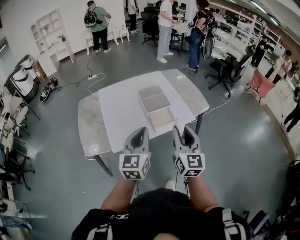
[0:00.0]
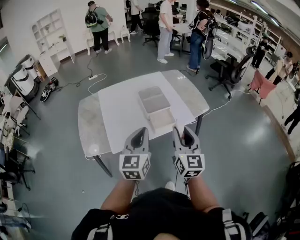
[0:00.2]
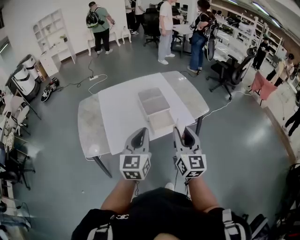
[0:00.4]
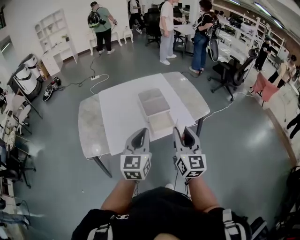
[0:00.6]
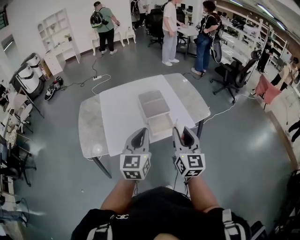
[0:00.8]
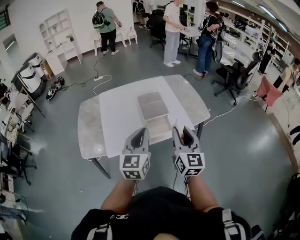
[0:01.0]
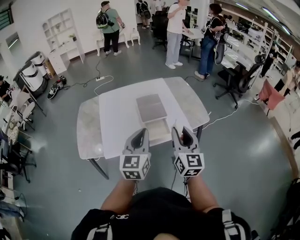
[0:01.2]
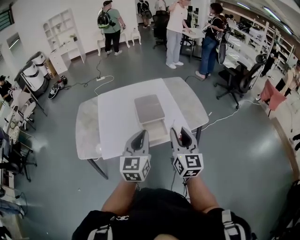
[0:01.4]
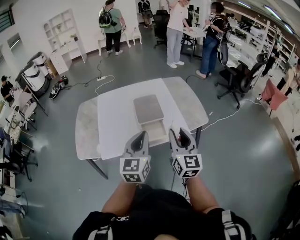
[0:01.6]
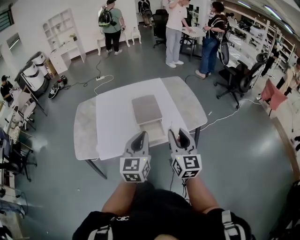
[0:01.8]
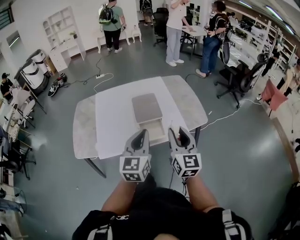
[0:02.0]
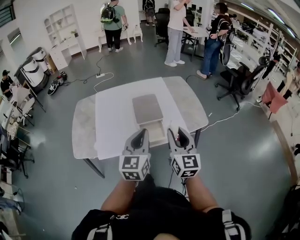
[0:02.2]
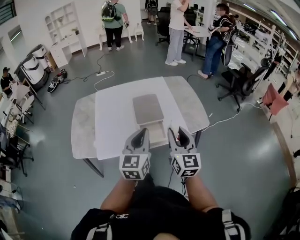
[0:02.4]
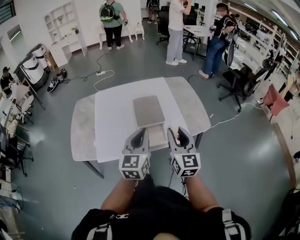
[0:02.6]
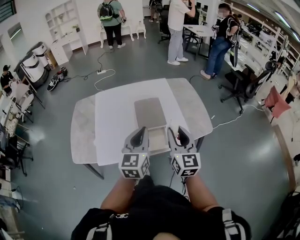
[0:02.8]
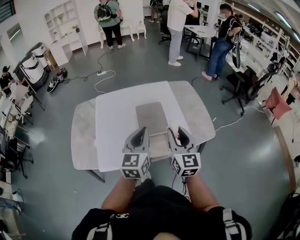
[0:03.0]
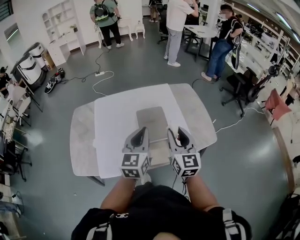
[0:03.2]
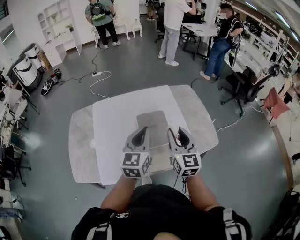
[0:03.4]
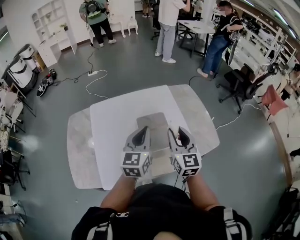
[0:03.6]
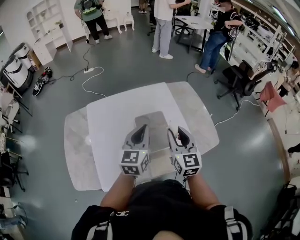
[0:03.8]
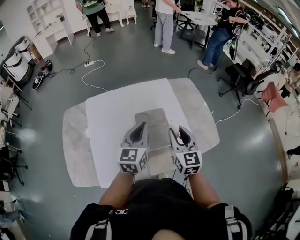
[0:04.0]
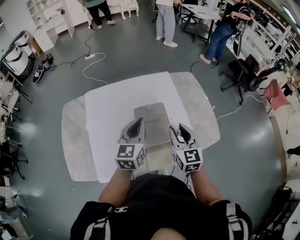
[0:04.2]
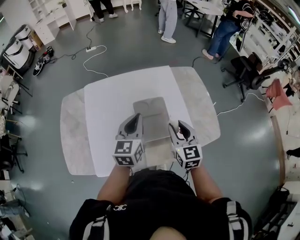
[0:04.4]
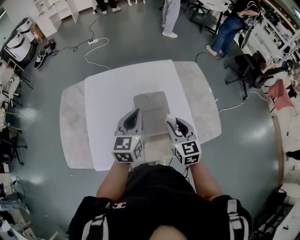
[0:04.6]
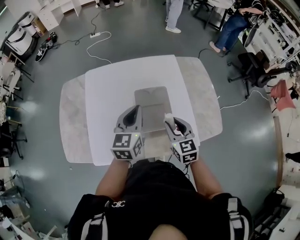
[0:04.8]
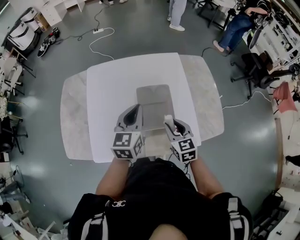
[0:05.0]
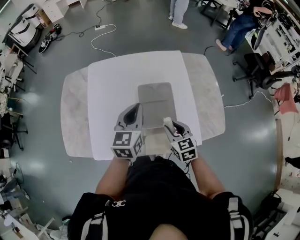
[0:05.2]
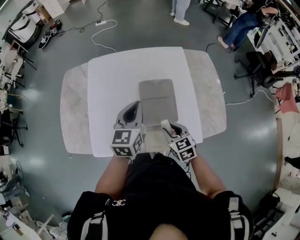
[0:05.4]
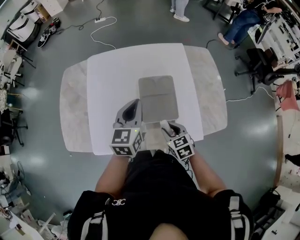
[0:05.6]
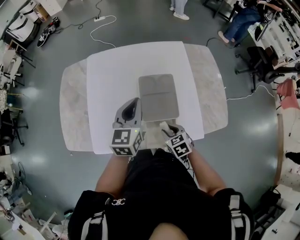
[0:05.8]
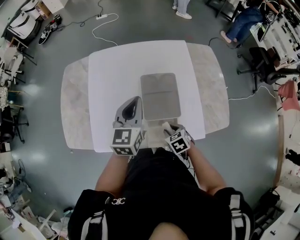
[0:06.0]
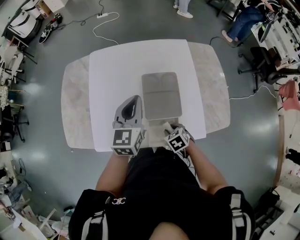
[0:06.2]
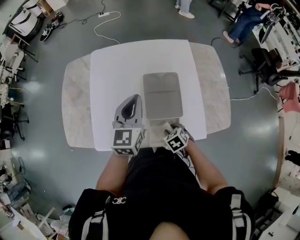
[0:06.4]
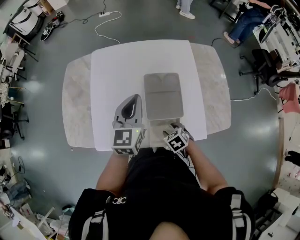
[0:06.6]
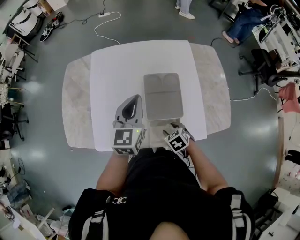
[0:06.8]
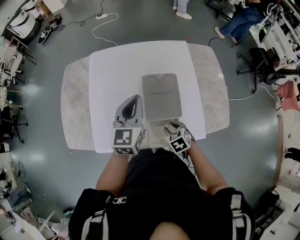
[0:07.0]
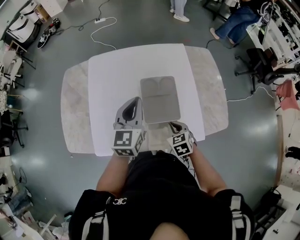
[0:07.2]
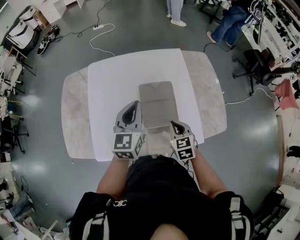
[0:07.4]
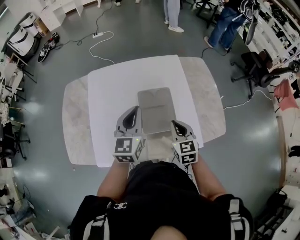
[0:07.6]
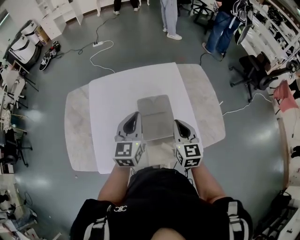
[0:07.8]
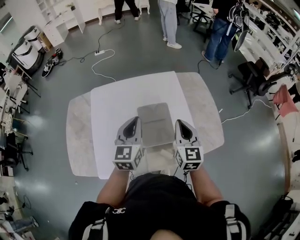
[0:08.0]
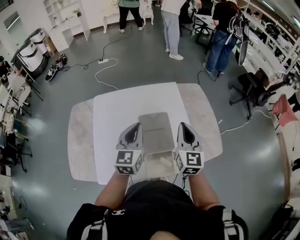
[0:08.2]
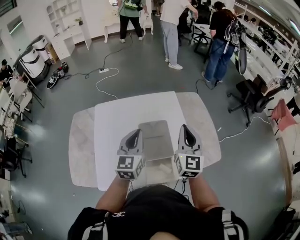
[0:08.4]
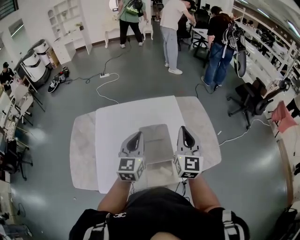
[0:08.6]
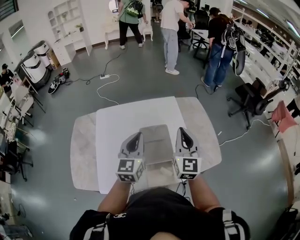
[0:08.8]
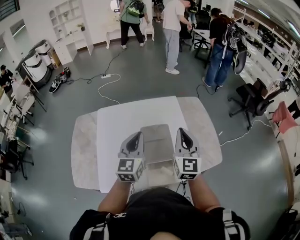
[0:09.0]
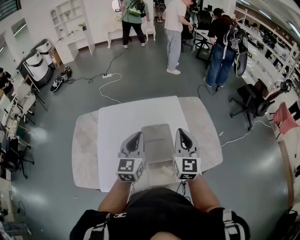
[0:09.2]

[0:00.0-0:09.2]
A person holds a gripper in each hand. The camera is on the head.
0.0 to 1.6 s: Both grippers move to the right and forward, roughly 15 cm.
1.6 to 3.0 s: The two grippers go approximately 15 cm forward.
3.0 to 4.6 s: The right gripper travels forward and downward by roughly 20 cm, and rotates about 20 degrees. The left gripper moves forward, approximately 20 cm.
4.6 to 6.2 s: The right gripper moves downward, approximately 20 cm, and points its fingers approximately 40 degrees further downward.
6.2 to 7.6 s: The right gripper heads upward and forward, covering roughly 20 cm, tips its fingers upward by about 40 degrees, and closes.
7.6 to 9.2 s: The left gripper is displaced upward by some 5 cm. The right gripper heads upward, covering some 15 cm, and points its fingers about 30 degrees further upward.

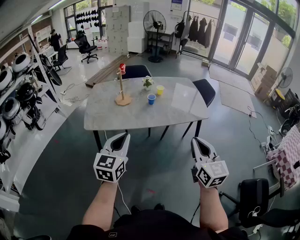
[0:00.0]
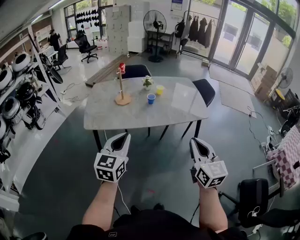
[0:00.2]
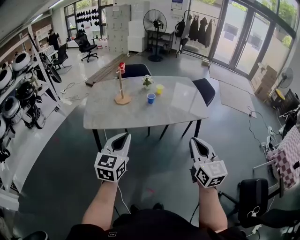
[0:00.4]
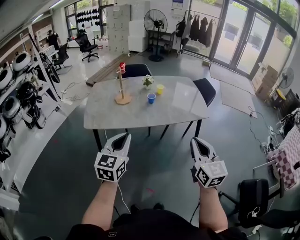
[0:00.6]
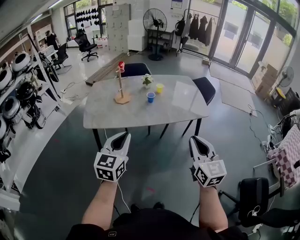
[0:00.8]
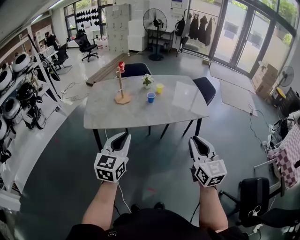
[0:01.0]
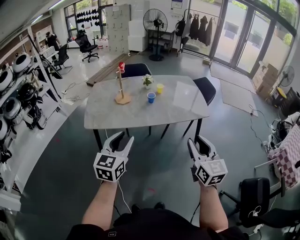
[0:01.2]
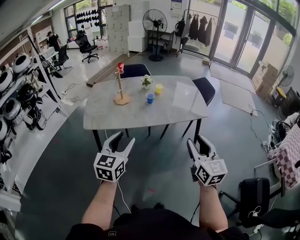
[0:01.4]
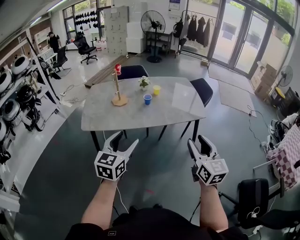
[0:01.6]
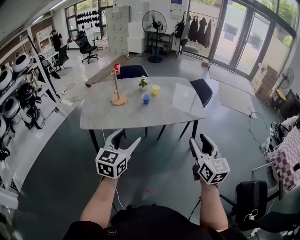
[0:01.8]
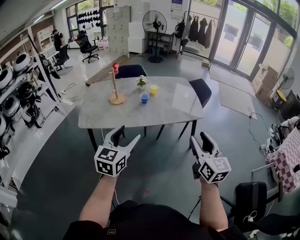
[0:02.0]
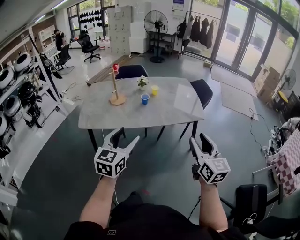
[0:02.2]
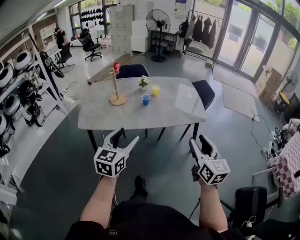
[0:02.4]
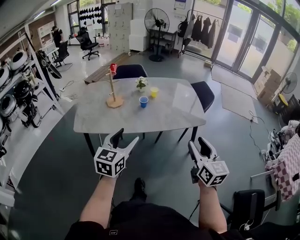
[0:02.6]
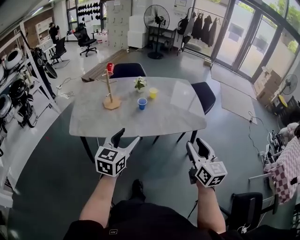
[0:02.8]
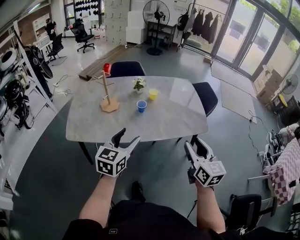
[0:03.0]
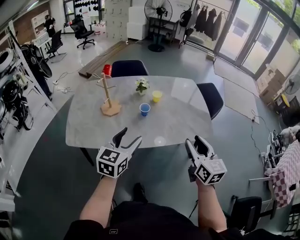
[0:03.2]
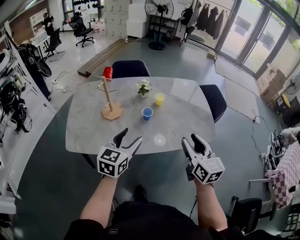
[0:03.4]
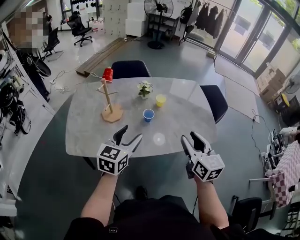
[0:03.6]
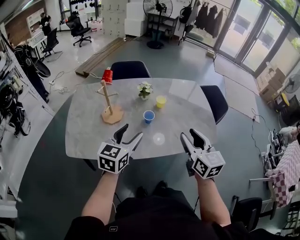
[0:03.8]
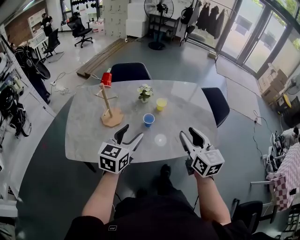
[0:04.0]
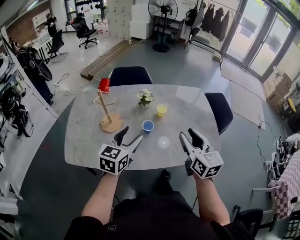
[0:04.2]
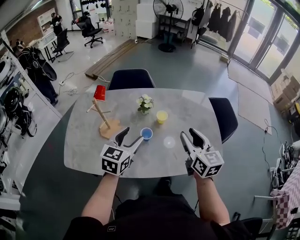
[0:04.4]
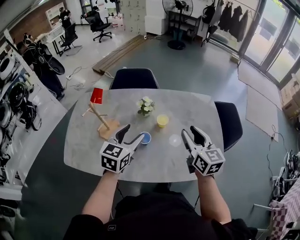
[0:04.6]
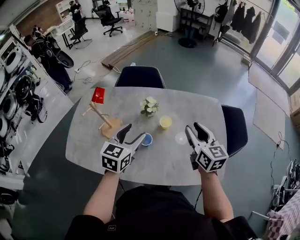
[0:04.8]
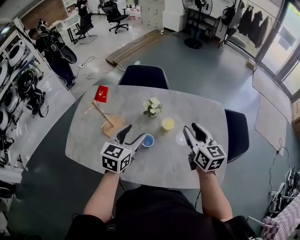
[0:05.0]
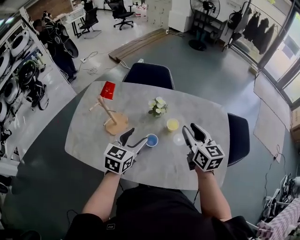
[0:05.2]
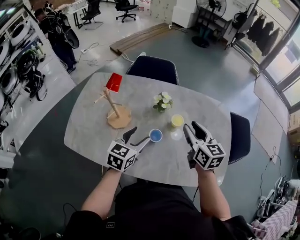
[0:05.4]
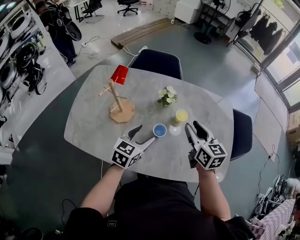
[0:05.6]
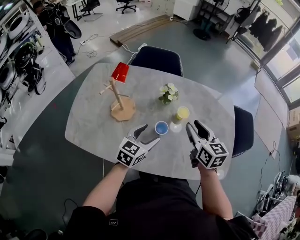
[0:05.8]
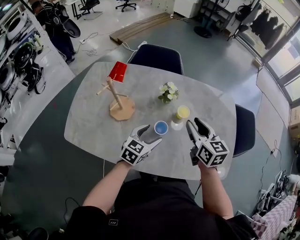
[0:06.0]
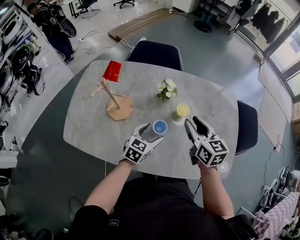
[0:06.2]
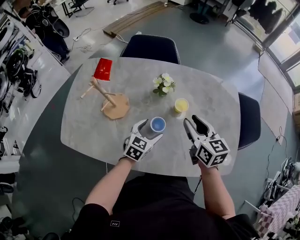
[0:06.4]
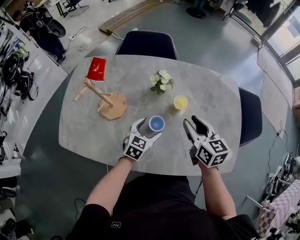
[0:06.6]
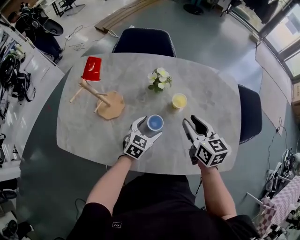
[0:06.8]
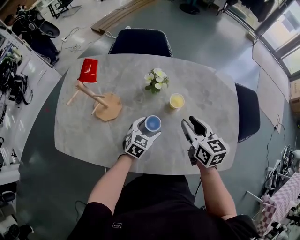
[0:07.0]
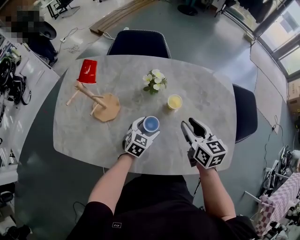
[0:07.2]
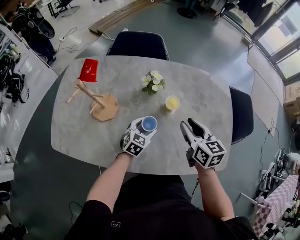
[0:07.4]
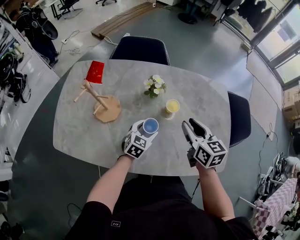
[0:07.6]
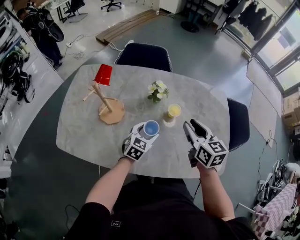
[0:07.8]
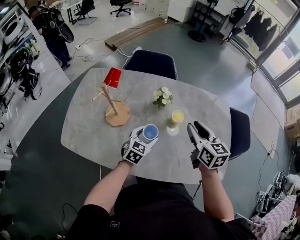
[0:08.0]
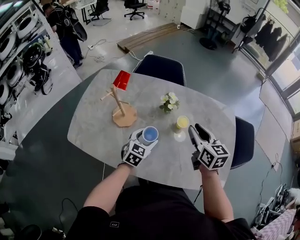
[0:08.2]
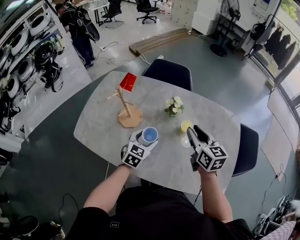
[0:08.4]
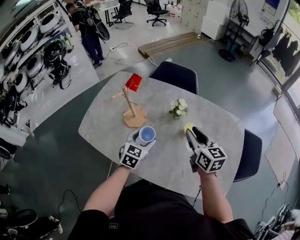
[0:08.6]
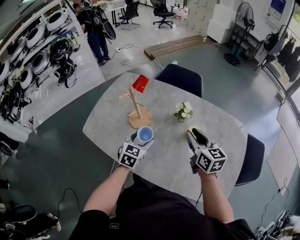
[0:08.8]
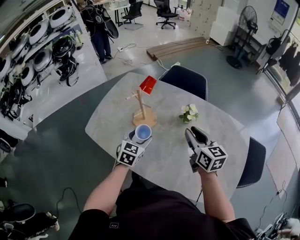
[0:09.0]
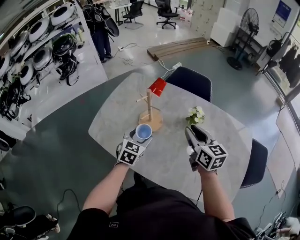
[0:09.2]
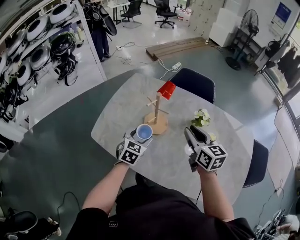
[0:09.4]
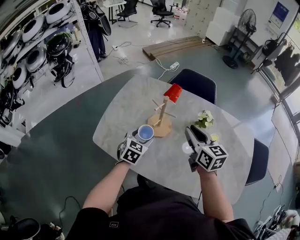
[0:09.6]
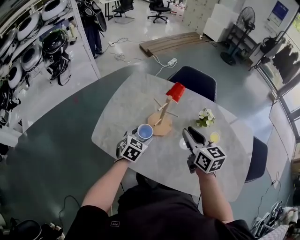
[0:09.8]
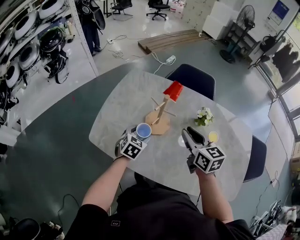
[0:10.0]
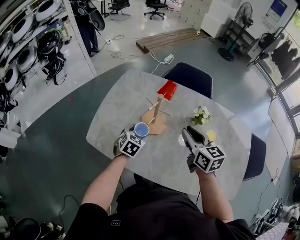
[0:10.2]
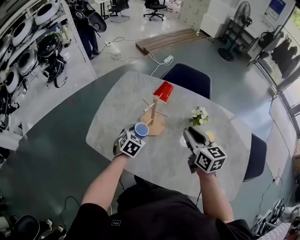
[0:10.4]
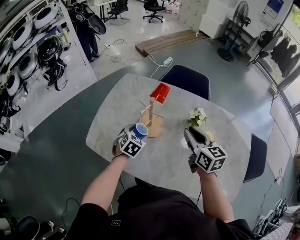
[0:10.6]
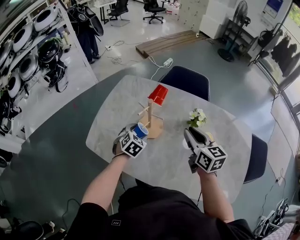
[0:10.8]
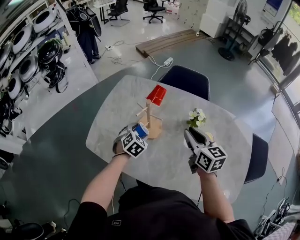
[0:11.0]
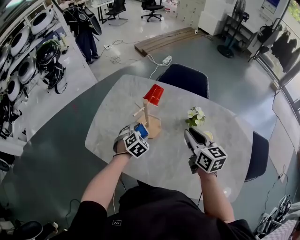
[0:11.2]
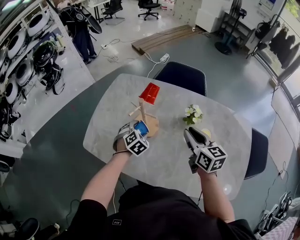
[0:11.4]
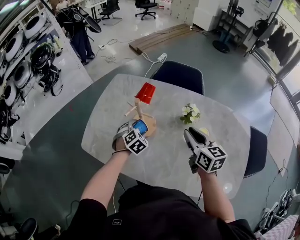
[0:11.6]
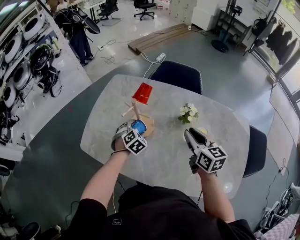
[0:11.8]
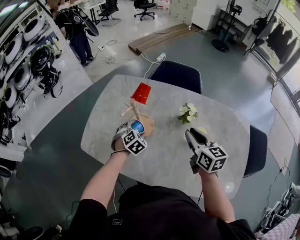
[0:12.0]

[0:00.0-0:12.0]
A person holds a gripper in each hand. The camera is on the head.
0.0 to 1.6 s: The right gripper opens; the left gripper opens.
1.6 to 3.0 s: The grippers both shift forward by approximately 20 cm.
3.0 to 4.4 s: The two grippers go roughly 30 cm forward.
4.4 to 6.0 s: The right gripper moves forward, downward and to the left, about 15 cm. The left gripper goes approximately 15 cm downward.
6.0 to 7.6 s: The left gripper shifts some 10 cm downward.
7.6 to 9.0 s: The right gripper moves roughly 15 cm, and swivels some 20 degrees; the left gripper changes place by approximately 20 cm, and changes its angle by some 30 degrees.
9.0 to 10.4 s: The left gripper heads to the left, downward and forward, covering approximately 15 cm, and rotates approximately 20 degrees, while the right gripper goes some 10 cm to the left.
10.4 to 12.0 s: The grippers both shift to the right by roughly 10 cm. The left gripper turns by approximately 20 degrees.

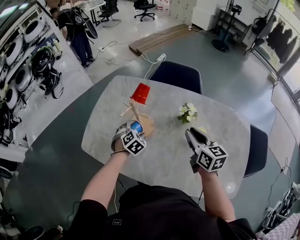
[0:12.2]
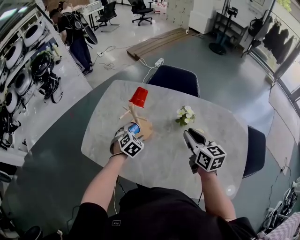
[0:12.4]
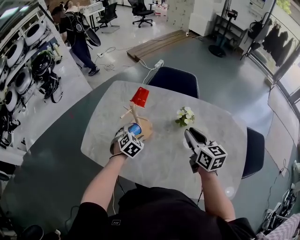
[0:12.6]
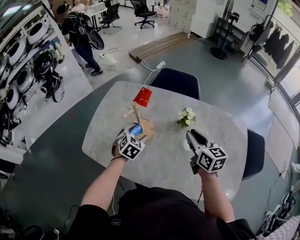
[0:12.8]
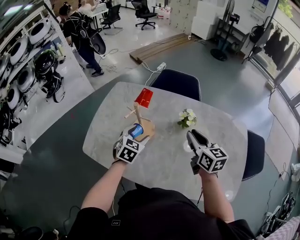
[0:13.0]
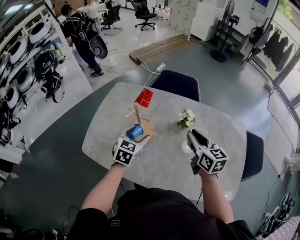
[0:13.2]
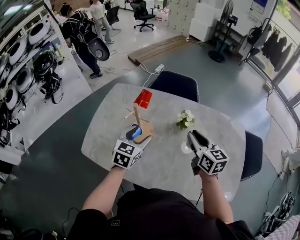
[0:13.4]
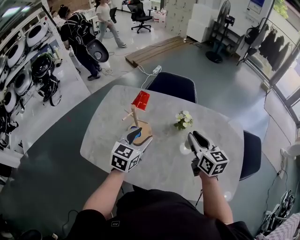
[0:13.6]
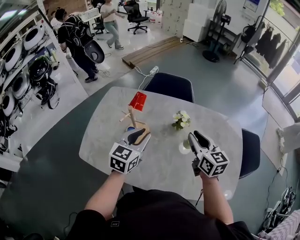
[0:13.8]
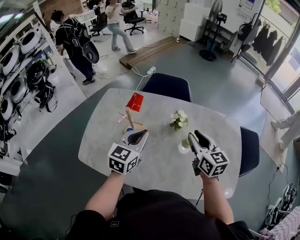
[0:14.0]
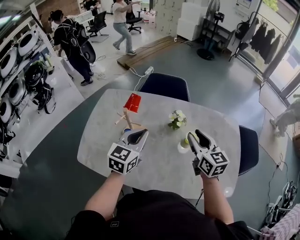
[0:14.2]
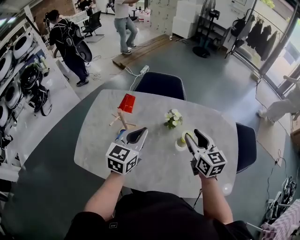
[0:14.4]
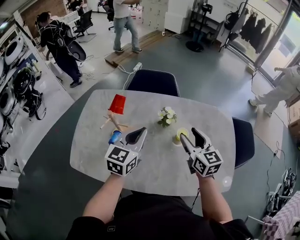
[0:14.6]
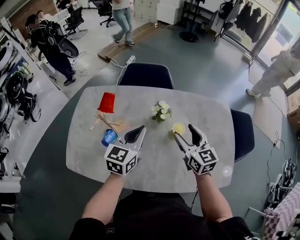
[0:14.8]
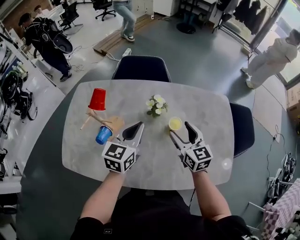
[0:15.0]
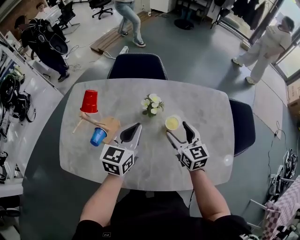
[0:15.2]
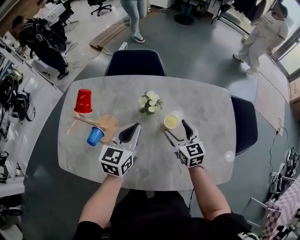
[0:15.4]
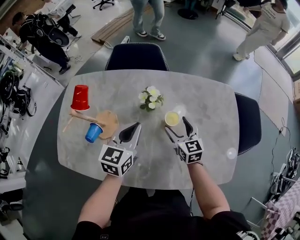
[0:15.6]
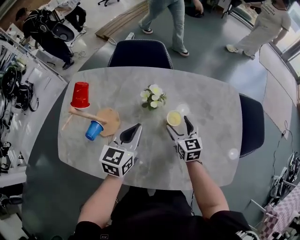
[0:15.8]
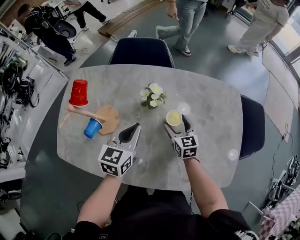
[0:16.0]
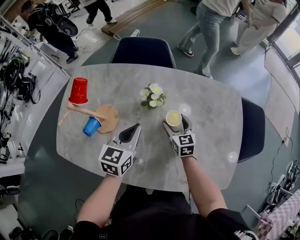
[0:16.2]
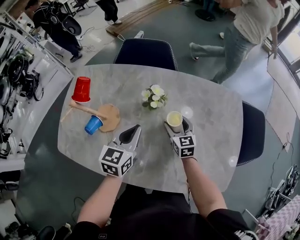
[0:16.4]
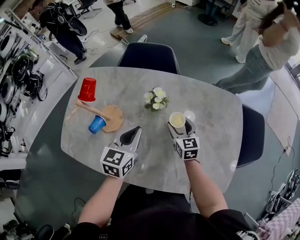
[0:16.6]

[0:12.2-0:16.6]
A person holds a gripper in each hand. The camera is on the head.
12.2 to 13.6 s: The left gripper moves upward, roughly 20 cm, and tilts its fingers some 30 degrees upward.
13.6 to 15.2 s: The left gripper goes about 15 cm to the right, and closes up; the right gripper heads downward and to the right, covering approximately 15 cm, and opens.
15.2 to 16.6 s: The right gripper shifts roughly 10 cm downward.
